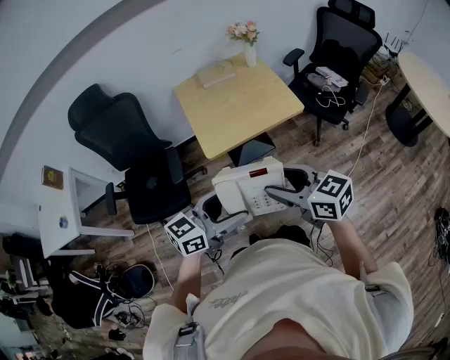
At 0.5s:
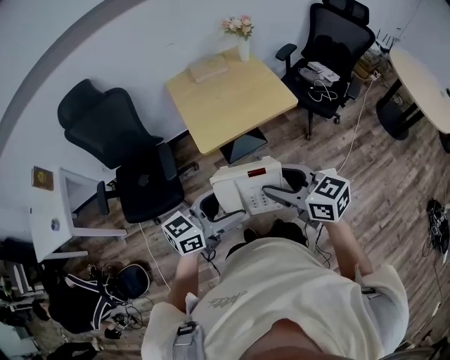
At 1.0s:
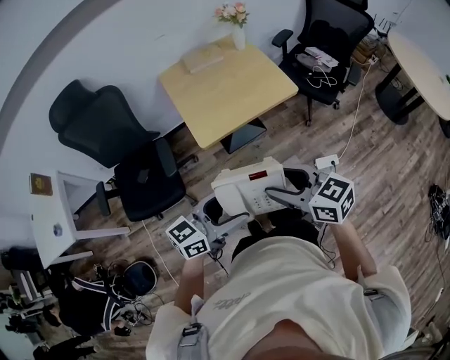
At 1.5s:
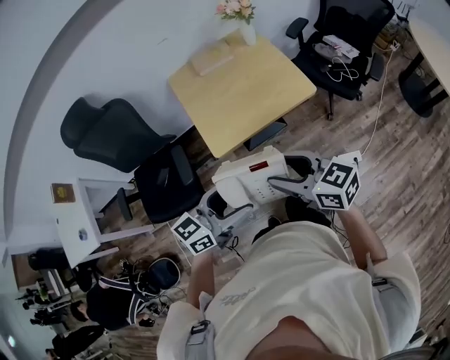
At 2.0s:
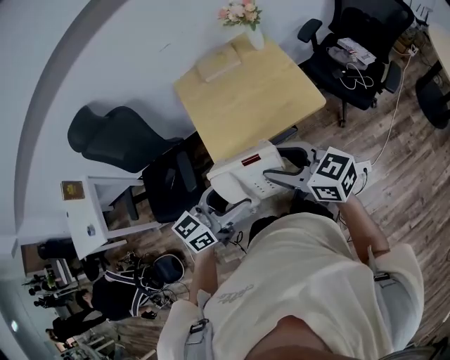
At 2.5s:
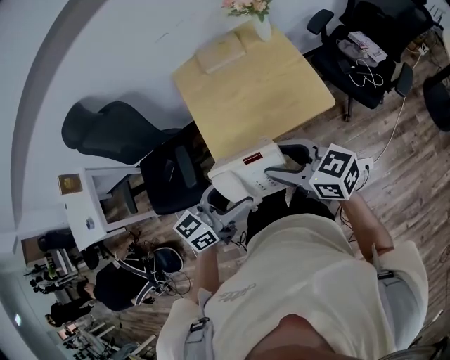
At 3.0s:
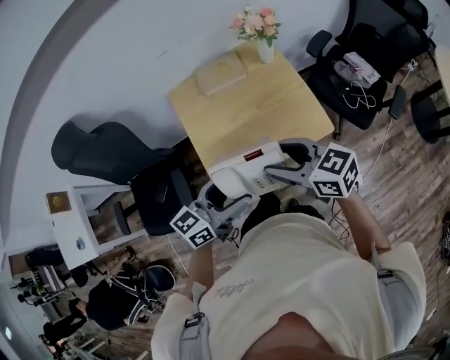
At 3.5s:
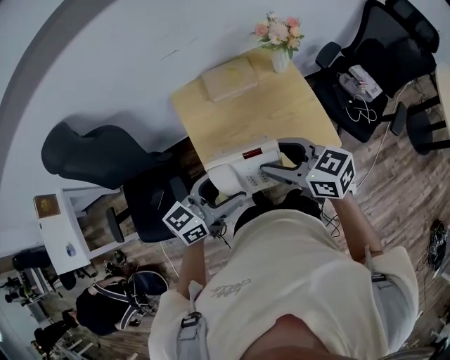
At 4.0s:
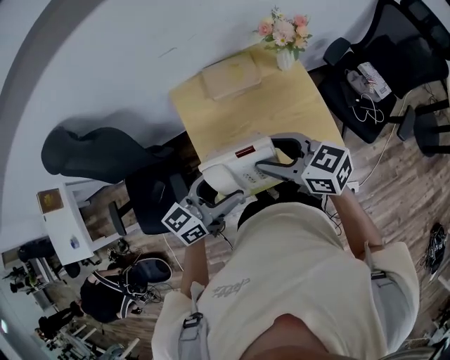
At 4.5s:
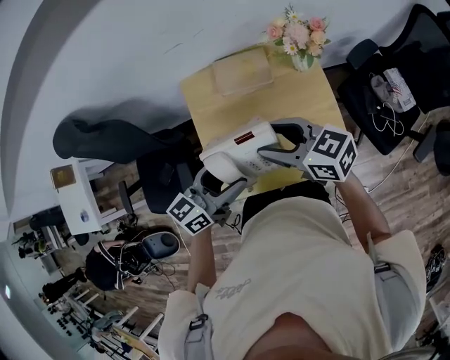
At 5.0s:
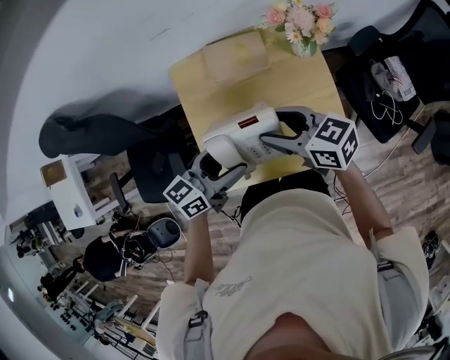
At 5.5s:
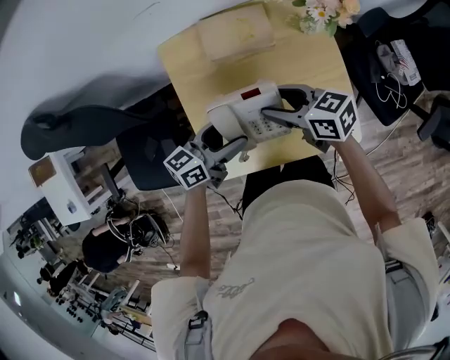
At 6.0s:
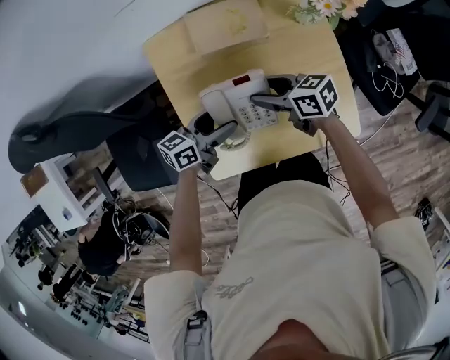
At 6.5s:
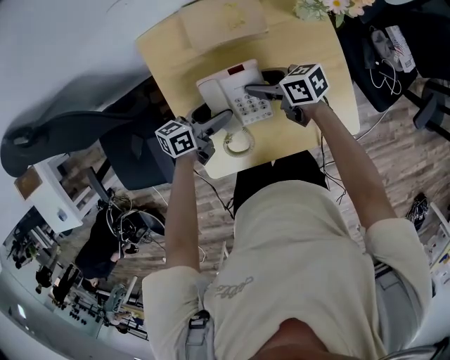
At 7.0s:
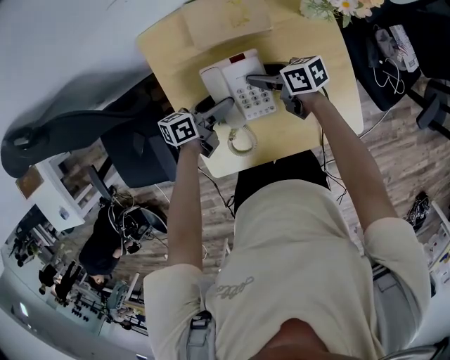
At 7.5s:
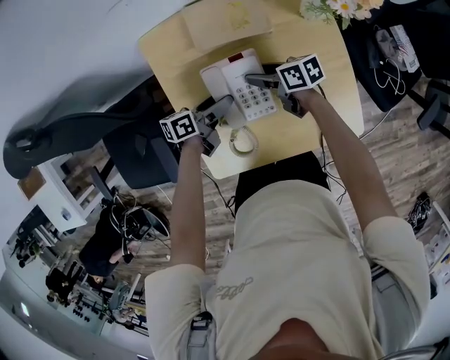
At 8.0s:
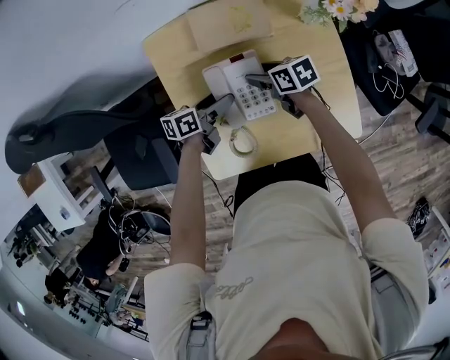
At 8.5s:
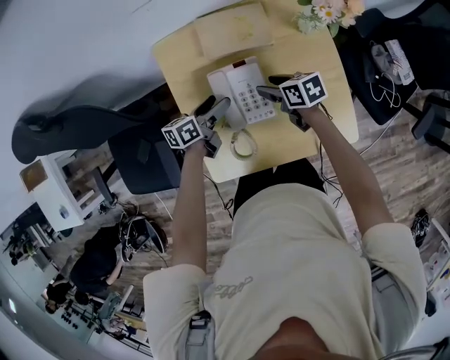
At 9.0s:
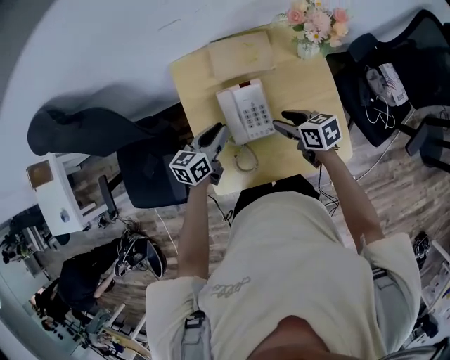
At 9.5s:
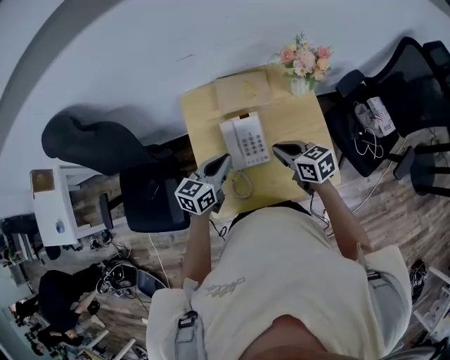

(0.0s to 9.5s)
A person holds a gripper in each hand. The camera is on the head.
0.0s - 2.0s: The two grippers go roughly 20 cm forward.
2.0s - 4.0s: The grippers both shift forward by approximately 30 cm.
4.0s - 5.5s: The two grippers go approximately 20 cm downward and forward.
5.5s - 7.5s: The two grippers go roughly 15 cm downward. The right gripper swivels some 20 degrees, while the left gripper changes its angle by about 30 degrees.
7.5s - 9.5s: Both grippers travel together upward, some 20 cm. The left gripper twists some 40 degrees clockwise, seen from behind, and closes its fingers; the right gripper changes its angle by about 30 degrees, and closes its fingers.

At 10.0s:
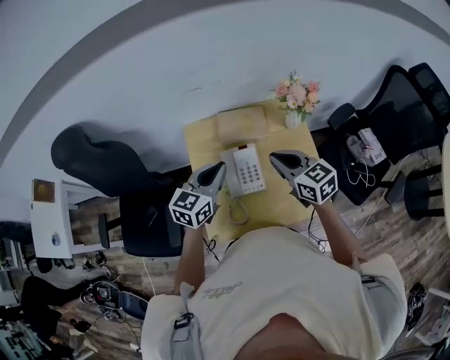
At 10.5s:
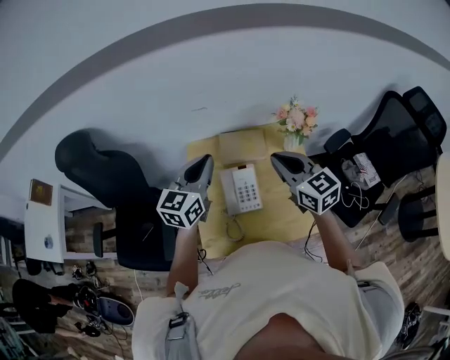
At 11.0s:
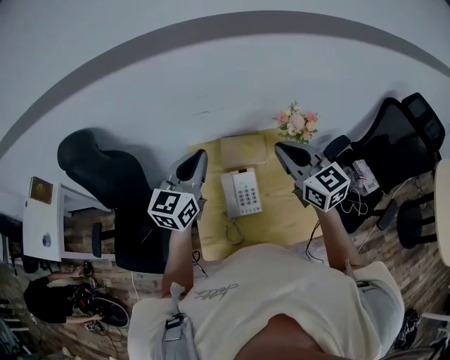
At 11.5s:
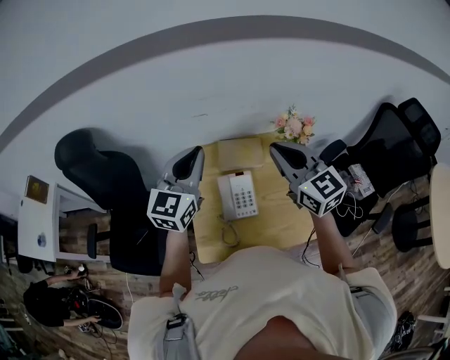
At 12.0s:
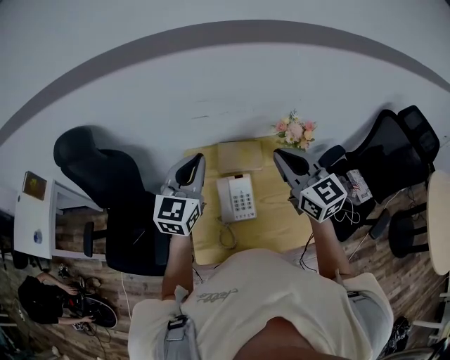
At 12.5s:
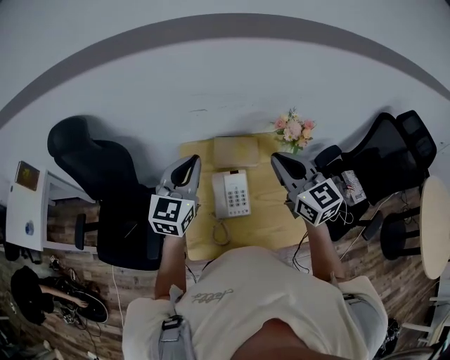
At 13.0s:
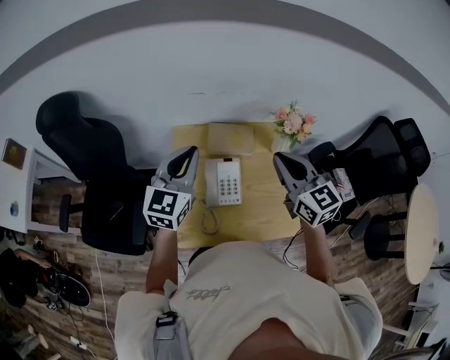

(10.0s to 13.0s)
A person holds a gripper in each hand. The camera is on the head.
10.0s - 11.5s: The two grippers go approximately 15 cm upward. The right gripper swivels about 20 degrees, while the left gripper changes its angle by about 30 degrees.
11.5s - 13.0s: The grippers both shift downward by approximately 5 cm.

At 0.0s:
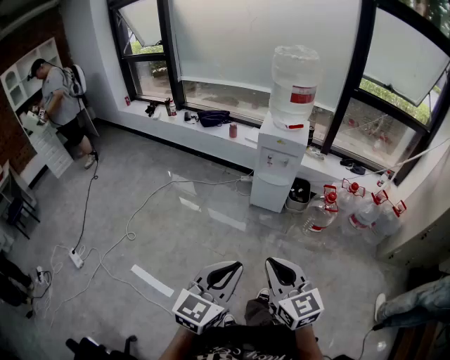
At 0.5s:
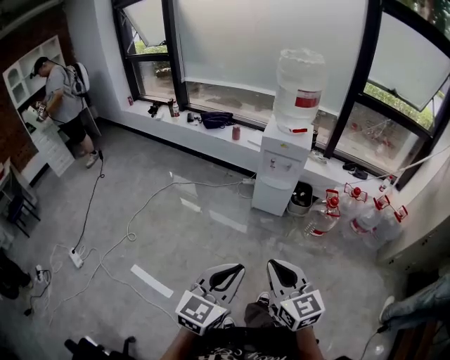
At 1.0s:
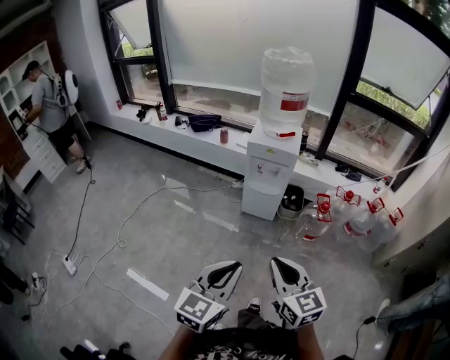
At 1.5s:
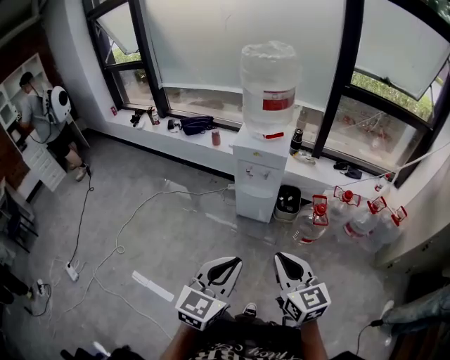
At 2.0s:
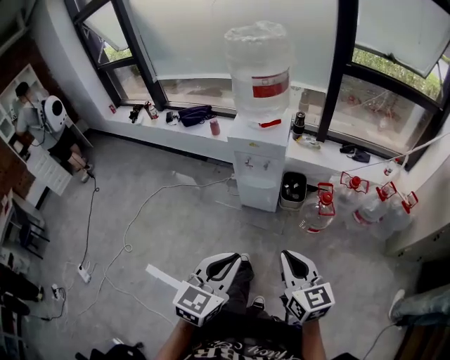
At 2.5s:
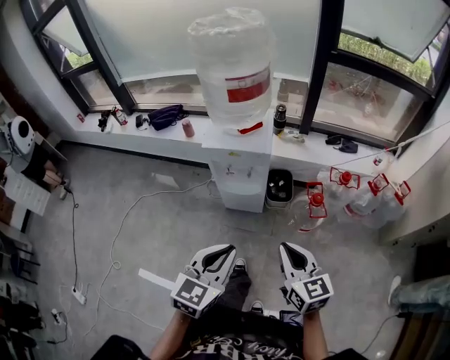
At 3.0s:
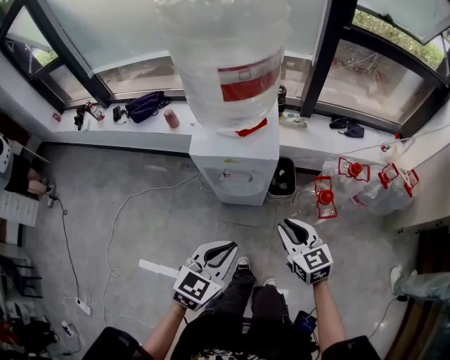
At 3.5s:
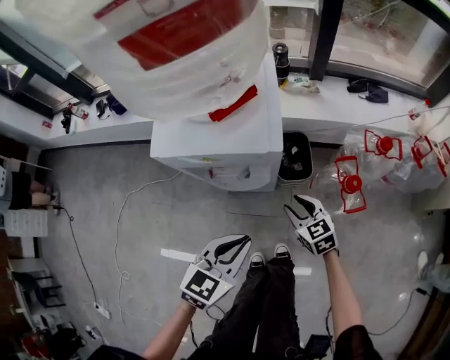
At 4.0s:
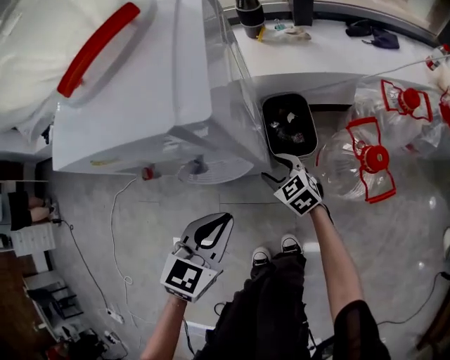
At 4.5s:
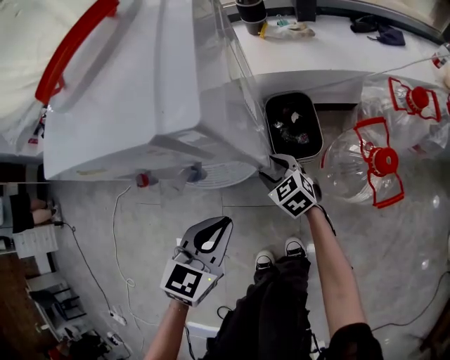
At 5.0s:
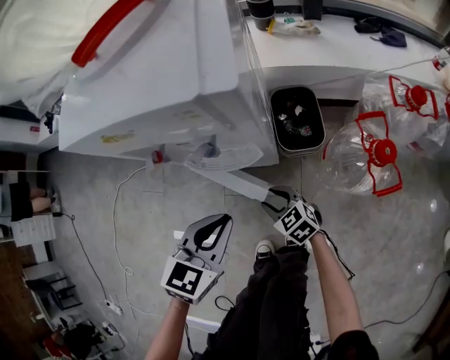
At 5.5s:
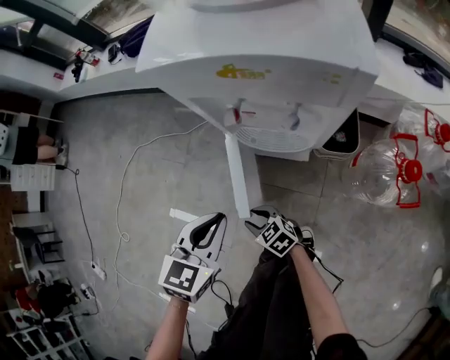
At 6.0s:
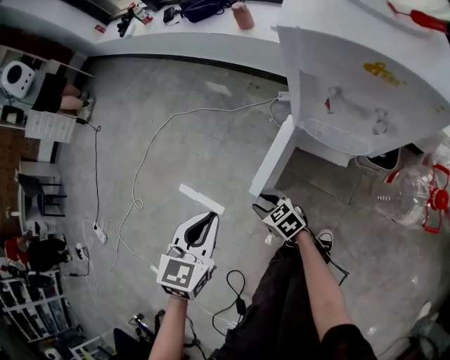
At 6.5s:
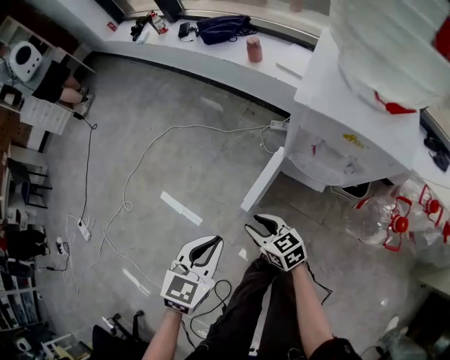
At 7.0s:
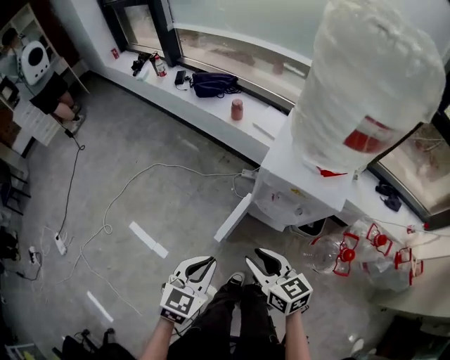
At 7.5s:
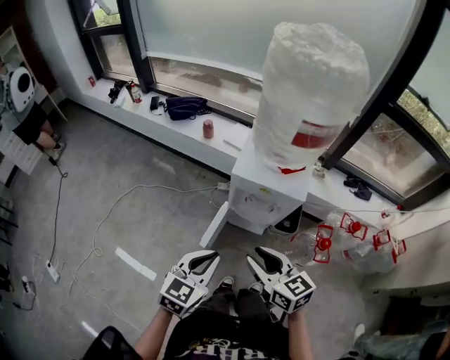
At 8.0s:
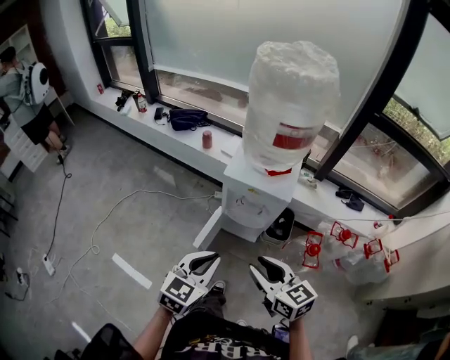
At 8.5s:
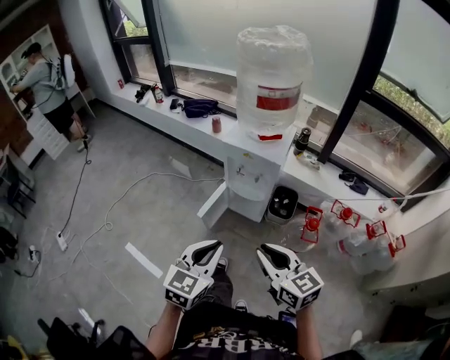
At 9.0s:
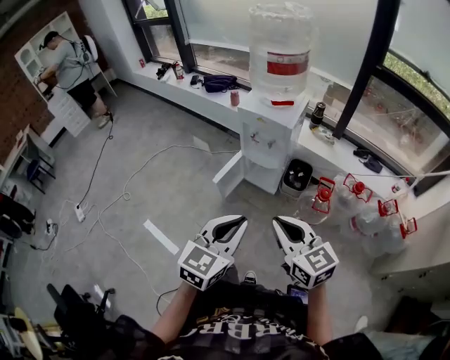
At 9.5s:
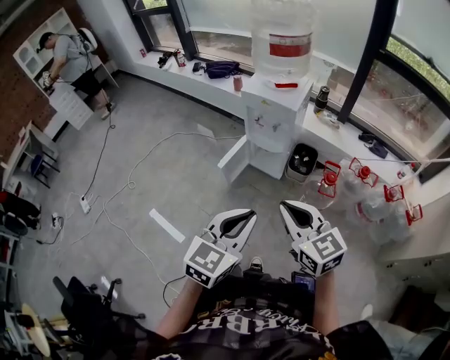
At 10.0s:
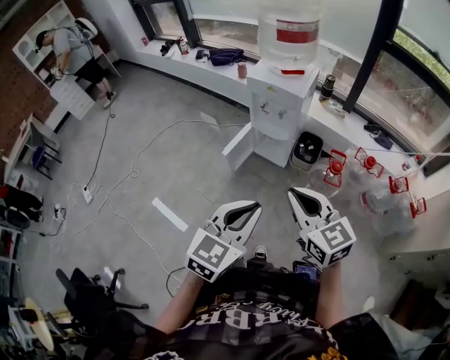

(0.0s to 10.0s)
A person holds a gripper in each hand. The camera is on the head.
0.0s - 2.0s: Both grippers move forward and to the right, some 30 cm.
2.0s - 4.0s: Both grippers are carried forward, approximately 50 cm. The grippers both shift downward by about 60 cm. The left gripper rotates roughly 30 degrees, while the right gripper swivels roughly 30 degrees, and opens its fingers.
4.0s - 6.0s: The right gripper changes place by roughly 40 cm, and swivels some 30 degrees. The left gripper moves some 35 cm, and changes its angle by roughly 40 degrees.
6.0s - 8.0s: The right gripper shifts roughly 60 cm upward, and rotates approximately 30 degrees; the left gripper travels upward by approximately 35 cm, and swivels some 30 degrees.
8.0s - 10.0s: Both grippers move backward, approximately 30 cm. The right gripper closes up.

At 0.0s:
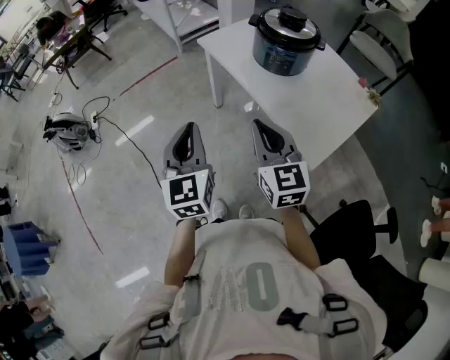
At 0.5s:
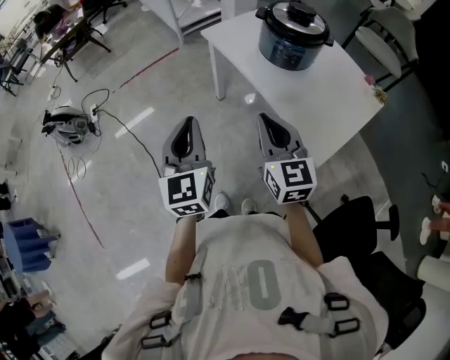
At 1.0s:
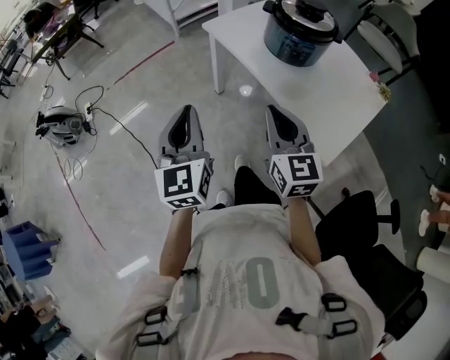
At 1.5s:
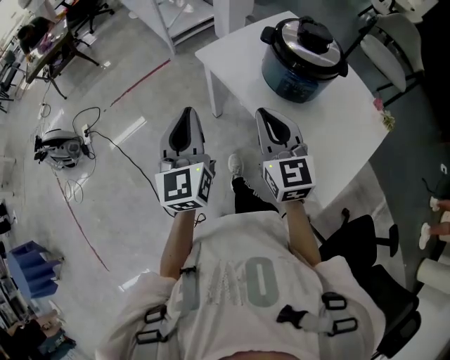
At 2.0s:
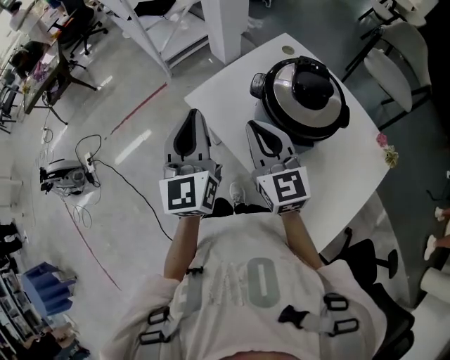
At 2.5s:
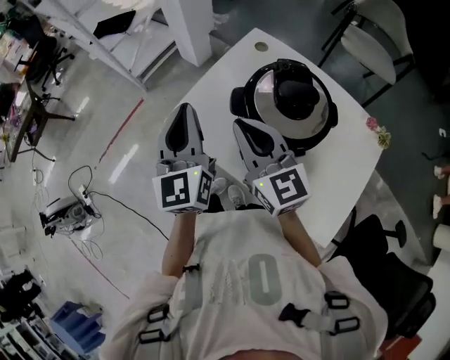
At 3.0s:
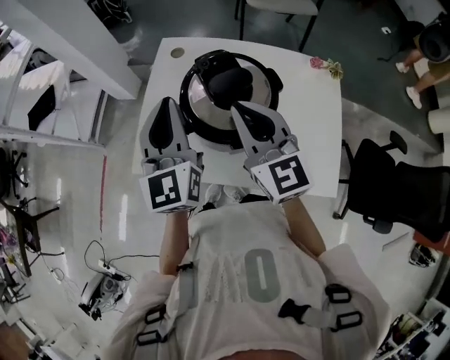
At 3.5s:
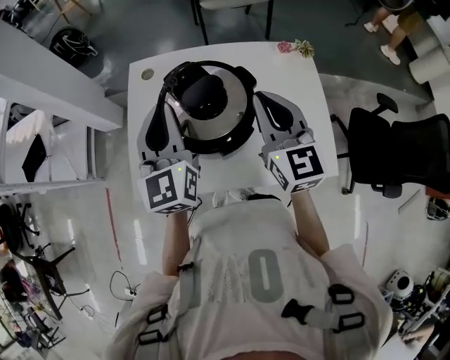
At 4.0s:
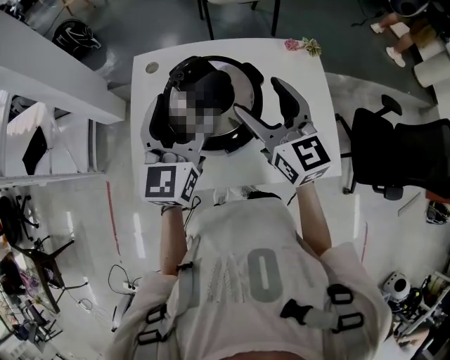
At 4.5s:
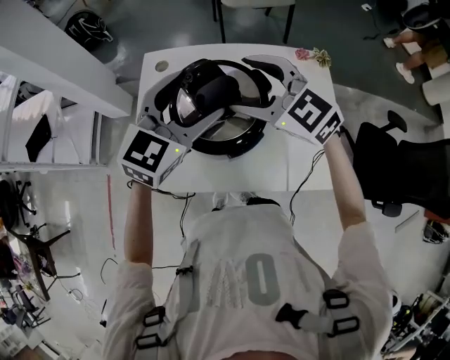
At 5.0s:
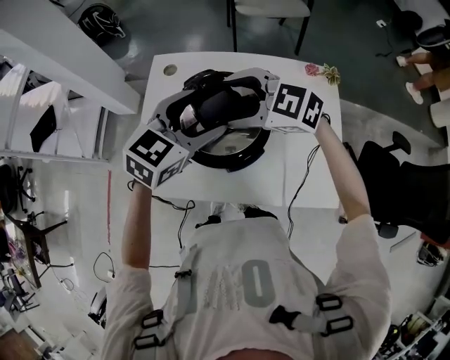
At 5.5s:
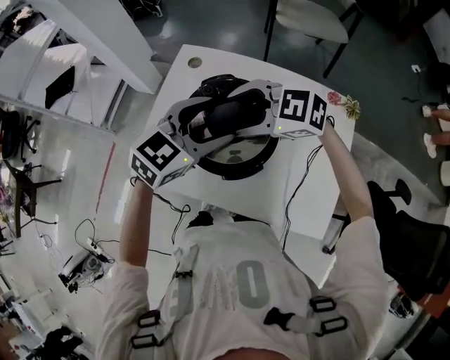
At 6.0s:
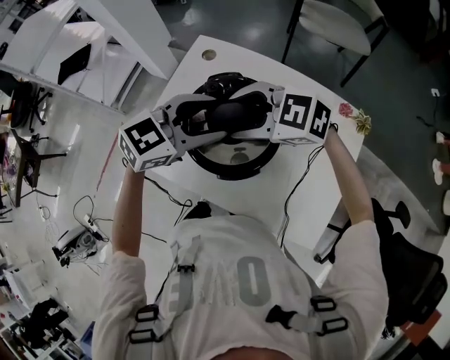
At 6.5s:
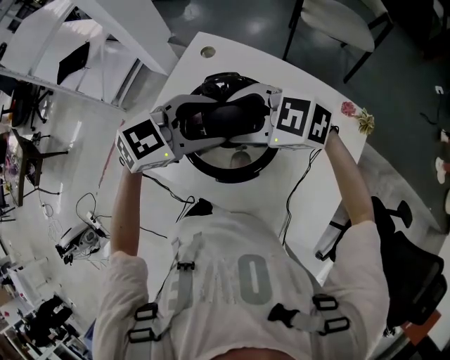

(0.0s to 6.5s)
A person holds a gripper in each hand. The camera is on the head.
0.0s - 2.0s: The two grippers go some 35 cm forward.
2.0s - 4.5s: The left gripper moves some 30 cm, turns by some 90 degrees, and opens up. Meanwhile the right gripper changes place by some 20 cm, changes its angle by roughly 30 degrees, and opens up.
4.5s - 6.5s: Both grippers move downward, some 5 cm. The right gripper rotates about 50 degrees.
